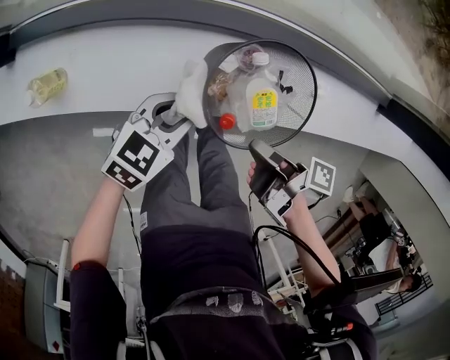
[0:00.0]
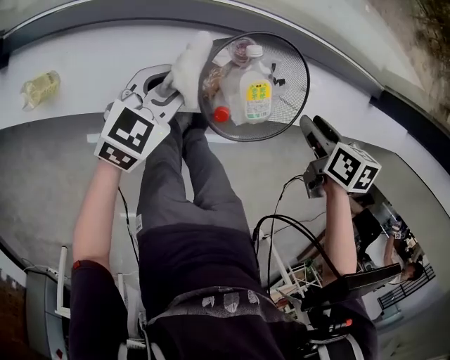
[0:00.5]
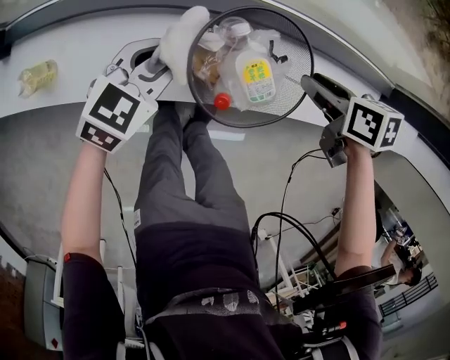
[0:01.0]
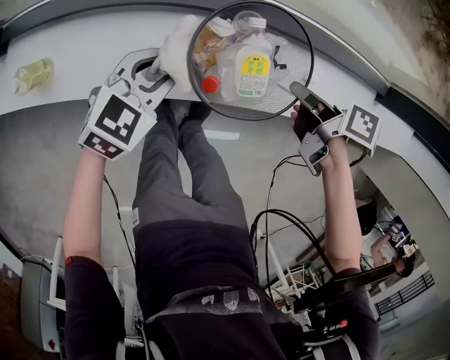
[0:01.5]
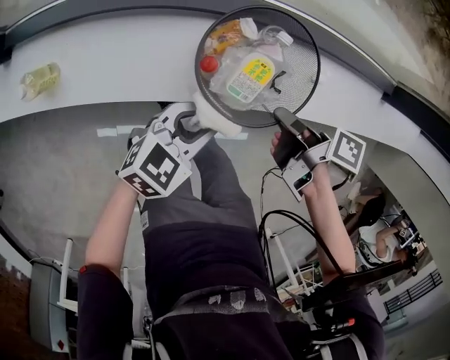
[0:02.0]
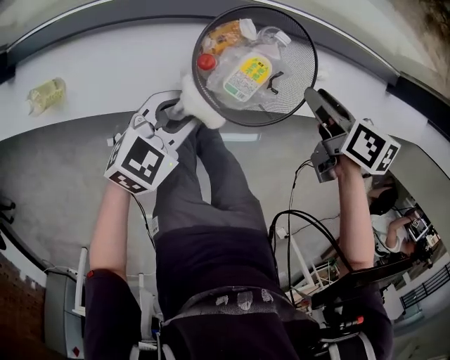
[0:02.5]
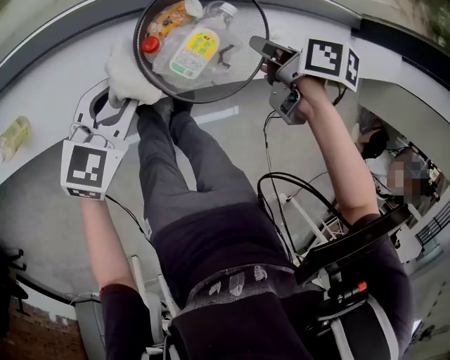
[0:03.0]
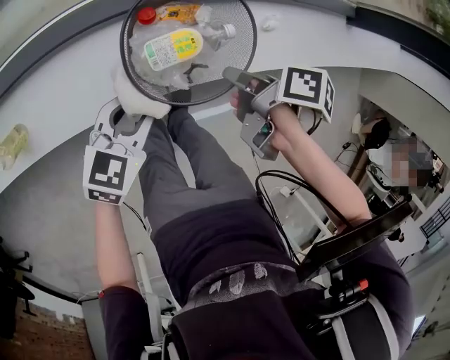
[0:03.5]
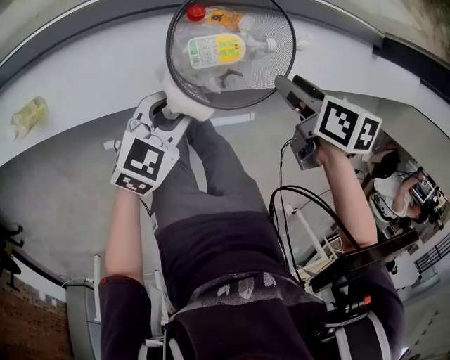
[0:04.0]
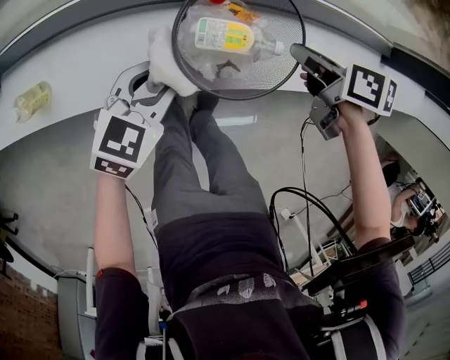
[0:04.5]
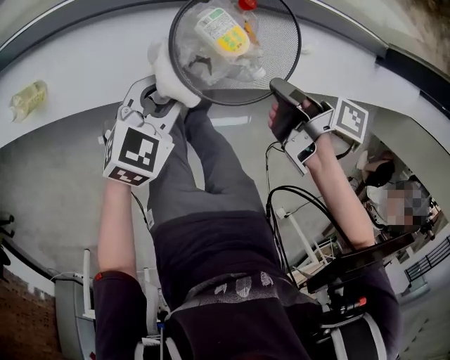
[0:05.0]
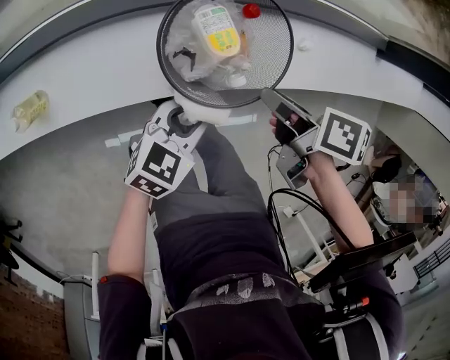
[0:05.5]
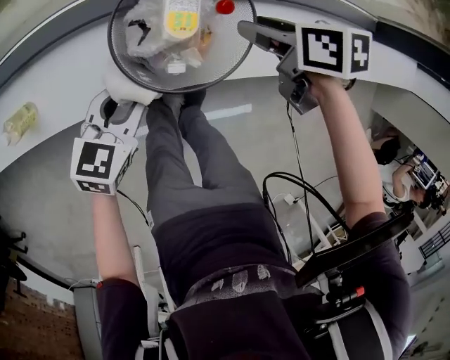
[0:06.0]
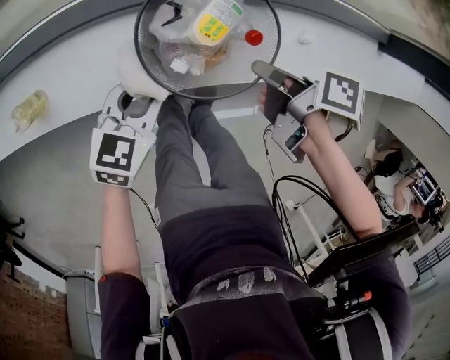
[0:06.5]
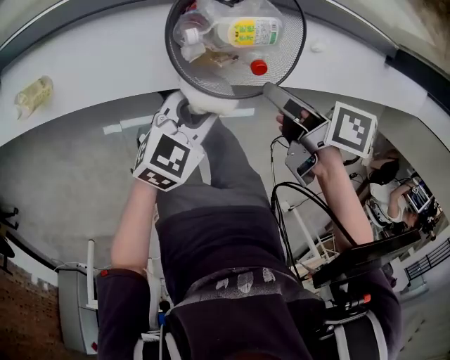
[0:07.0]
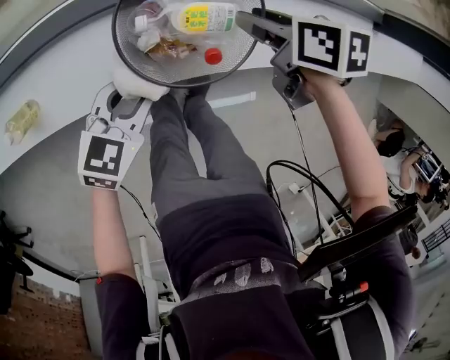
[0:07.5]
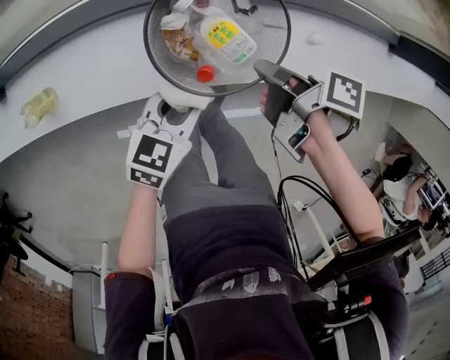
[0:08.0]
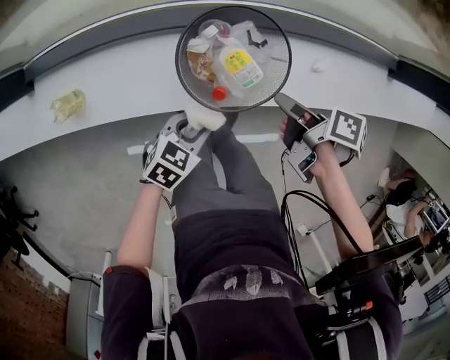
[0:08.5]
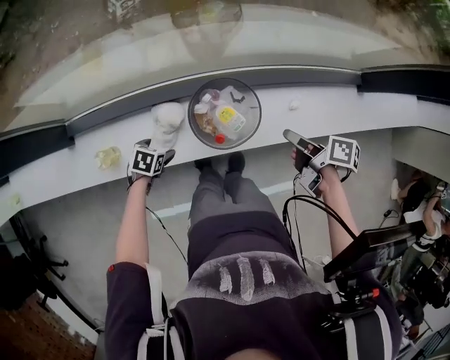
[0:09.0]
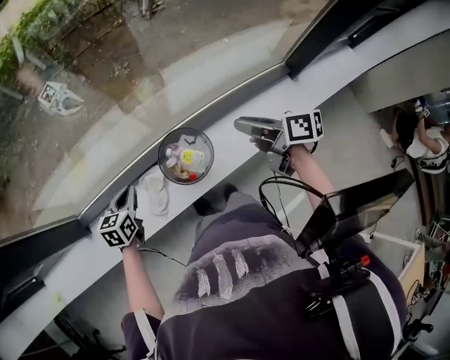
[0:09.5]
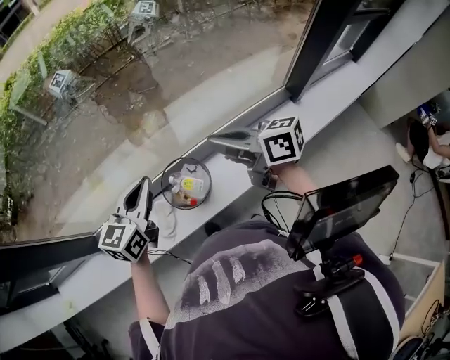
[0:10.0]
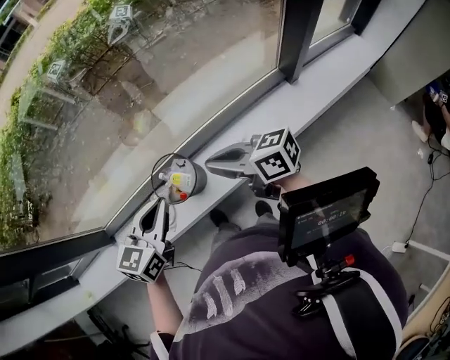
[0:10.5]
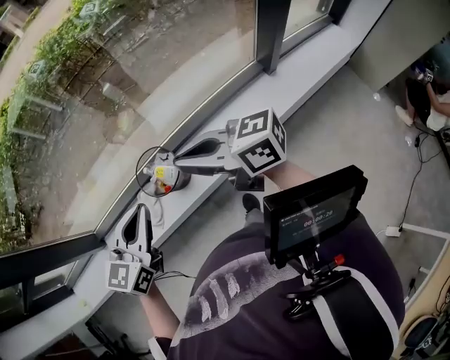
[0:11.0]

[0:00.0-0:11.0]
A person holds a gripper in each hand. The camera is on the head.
0:00.0 to 0:02.0: The two grippers go some 5 cm to the right. The right gripper travels forward and back again, some 15 cm each way, and opens, then closes once more.
0:02.0 to 0:03.5: The right gripper goes forward and returns, roughly 10 cm each way, and opens and closes again.
0:03.5 to 0:05.5: The right gripper goes forward and returns, some 10 cm each way, changes its angle by some 20 degrees, and opens, then closes again. Meanwhile the left gripper moves some 5 cm.
0:05.5 to 0:07.5: The right gripper goes forward and backward, approximately 10 cm each way, reversing 2 times, and rotates about 30 degrees. Meanwhile the left gripper moves left and right over about 10 cm, changing direction 2 times.
0:07.5 to 0:09.0: The left gripper goes some 15 cm to the left and downward, tips its fingers downward by approximately 30 degrees, and opens its fingers. Meanwhile the right gripper goes approximately 15 cm upward, backward and to the right, and changes its angle by roughly 40 degrees.
0:09.0 to 0:11.0: The left gripper heads upward and to the right, covering about 50 cm, angles its fingers upward, by approximately 50 degrees, and closes; the right gripper travels upward by about 30 cm, tilts its fingers approximately 40 degrees upward, and closes up.

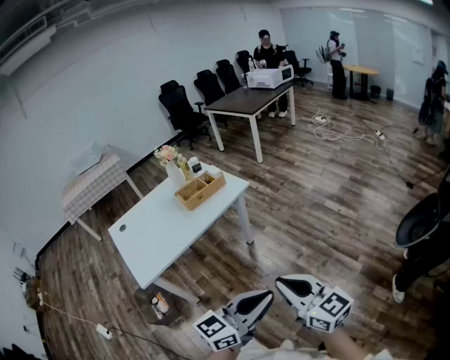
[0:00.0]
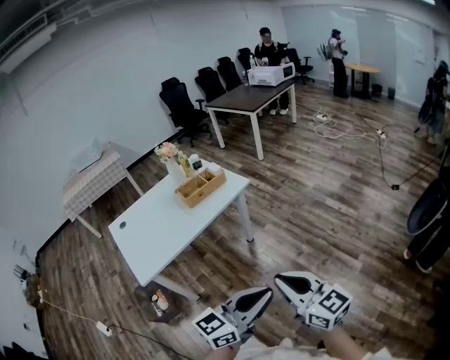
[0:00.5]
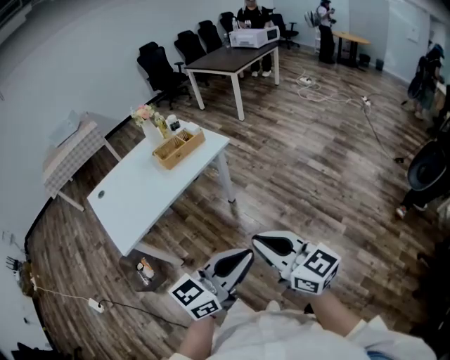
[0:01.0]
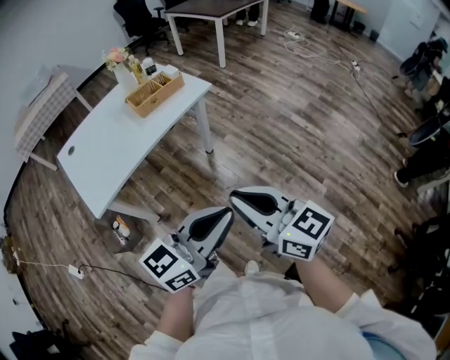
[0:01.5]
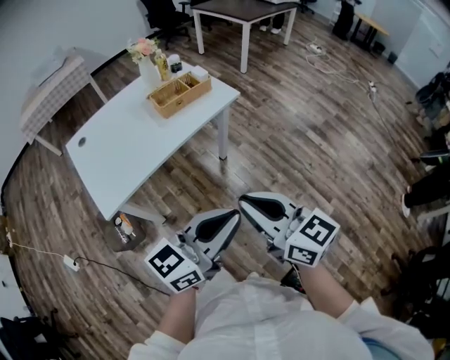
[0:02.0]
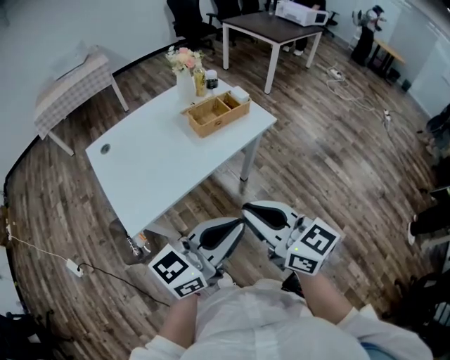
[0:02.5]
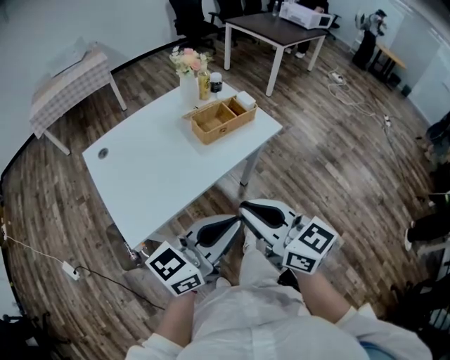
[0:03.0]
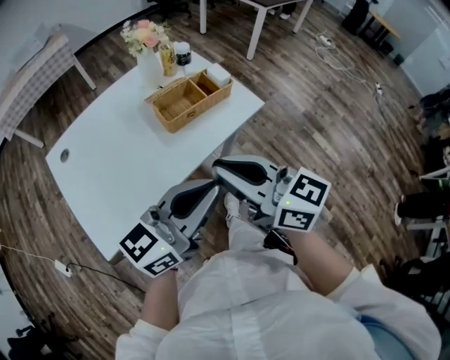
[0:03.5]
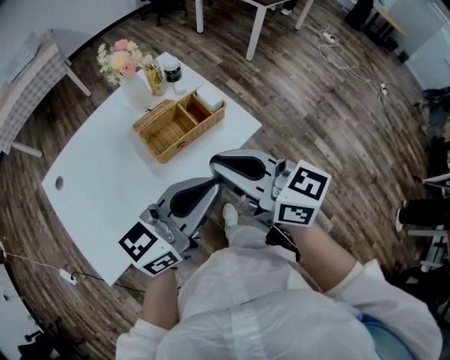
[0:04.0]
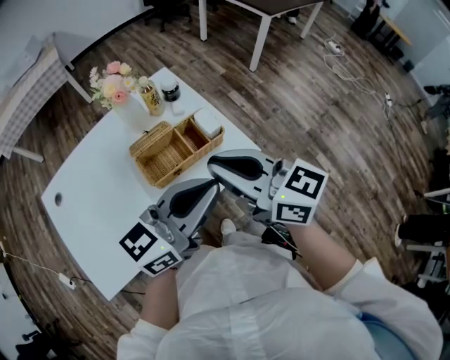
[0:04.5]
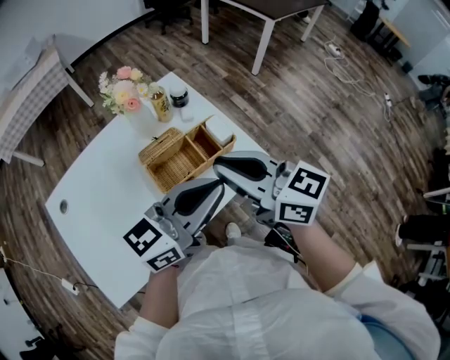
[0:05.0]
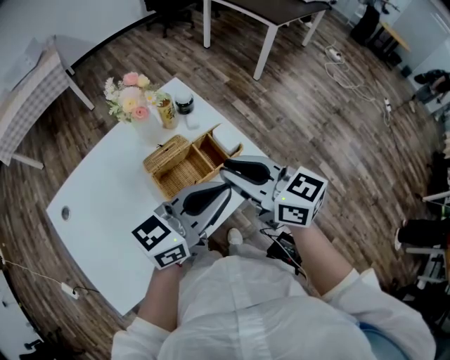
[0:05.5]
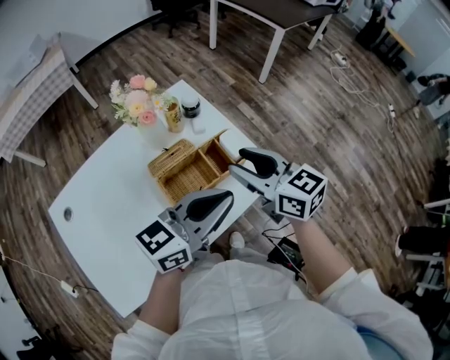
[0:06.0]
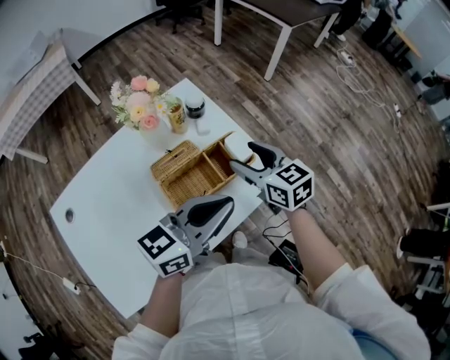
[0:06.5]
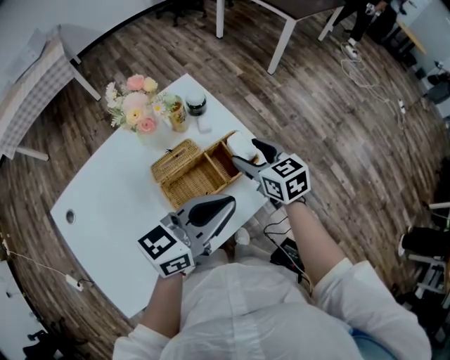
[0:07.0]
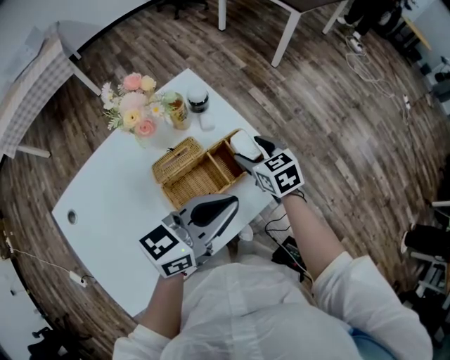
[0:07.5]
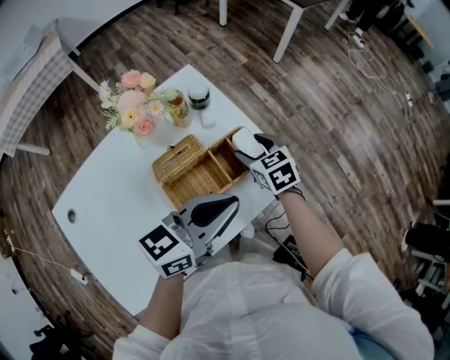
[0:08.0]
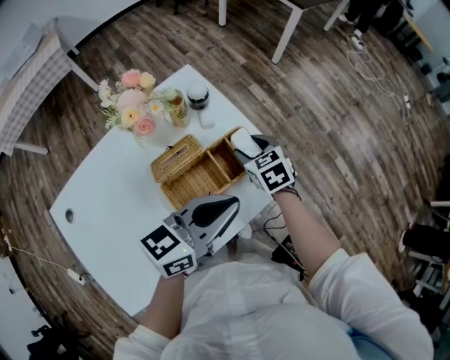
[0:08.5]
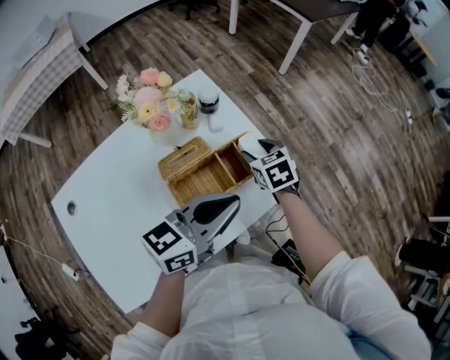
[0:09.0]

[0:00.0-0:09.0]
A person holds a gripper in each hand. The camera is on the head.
0:00.0 to 0:02.0: Both grippers travel together to the left and forward, some 15 cm.
0:02.0 to 0:04.5: Both grippers are carried forward, approximately 50 cm.
0:04.5 to 0:07.0: The left gripper moves forward, downward and to the left, roughly 10 cm, while the right gripper travels downward and forward by about 25 cm, rotates some 30 degrees, and opens its fingers.
0:07.0 to 0:09.0: The right gripper goes some 5 cm downward, and rotates approximately 20 degrees.

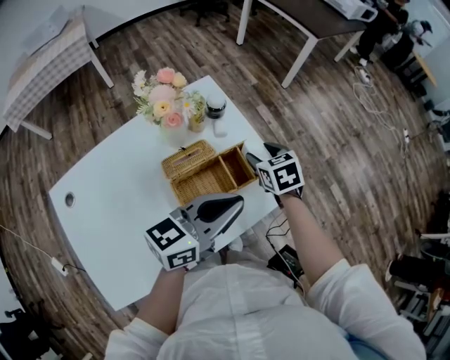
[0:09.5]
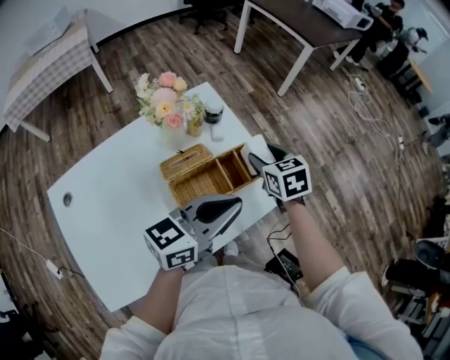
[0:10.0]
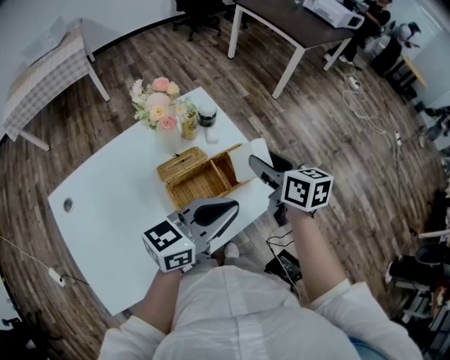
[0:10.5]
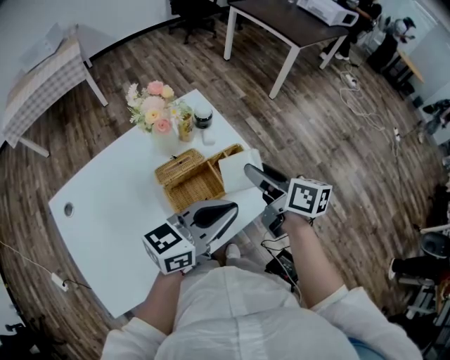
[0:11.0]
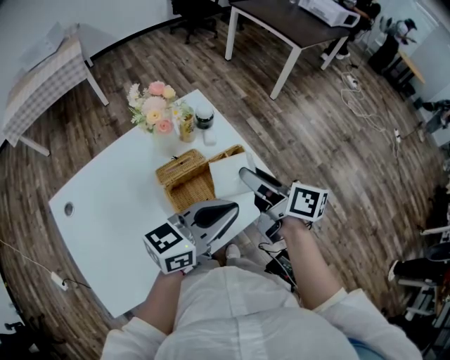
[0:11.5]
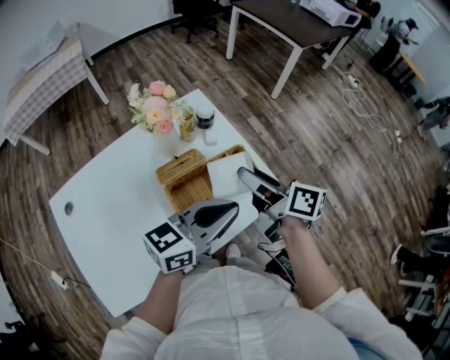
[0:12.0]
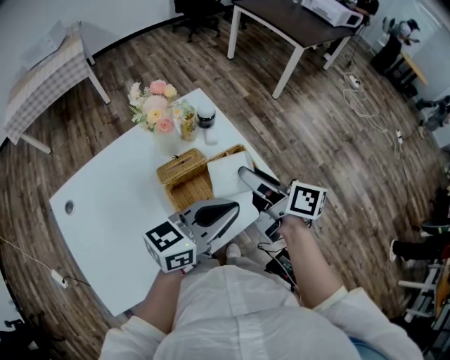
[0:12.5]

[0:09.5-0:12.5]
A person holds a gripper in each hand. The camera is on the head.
0:09.5 to 0:11.0: The right gripper is displaced upward and backward by roughly 15 cm, and tilts its fingers some 30 degrees upward.
0:11.0 to 0:12.5: The grippers stay close to where they were, moving slightly.

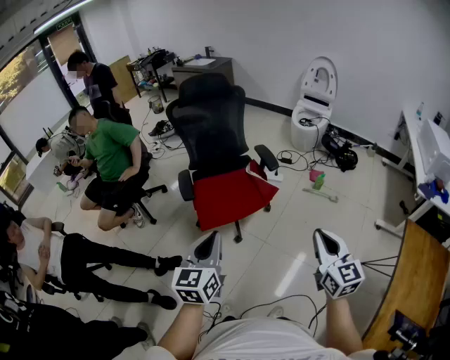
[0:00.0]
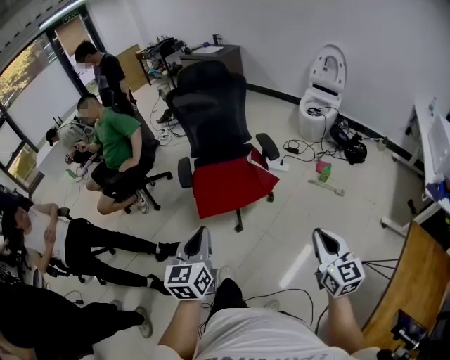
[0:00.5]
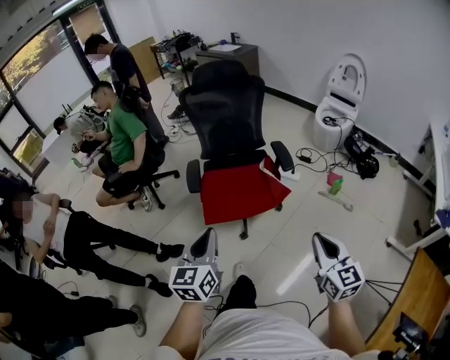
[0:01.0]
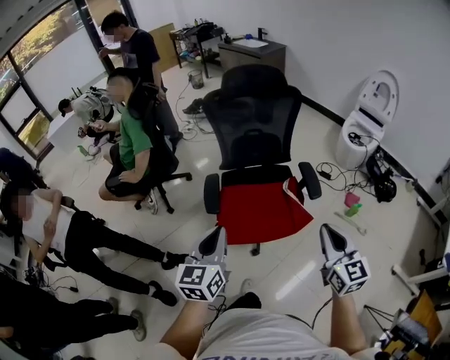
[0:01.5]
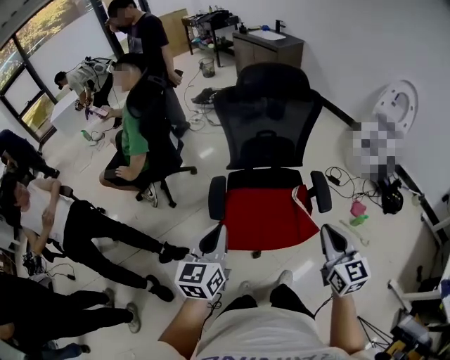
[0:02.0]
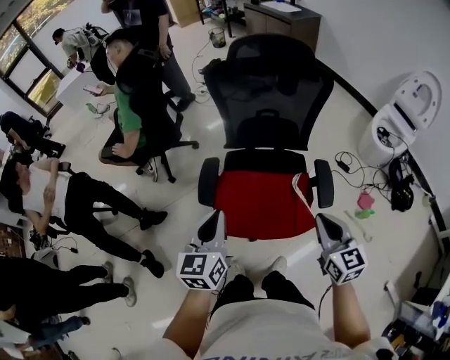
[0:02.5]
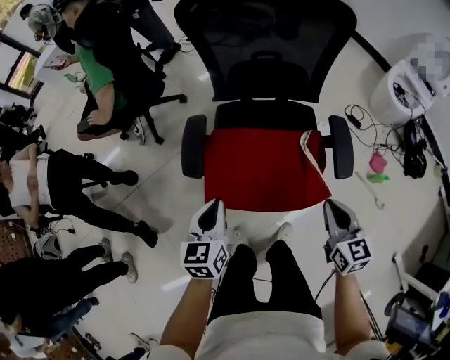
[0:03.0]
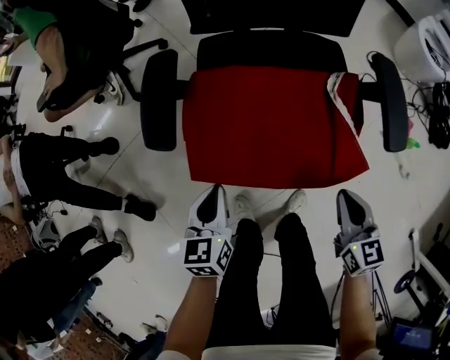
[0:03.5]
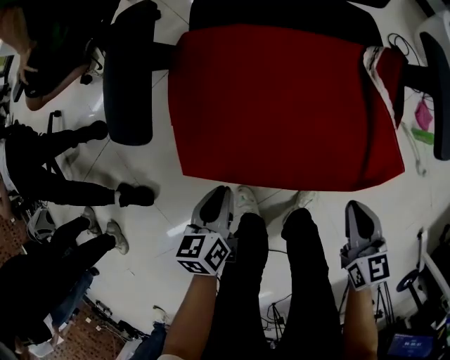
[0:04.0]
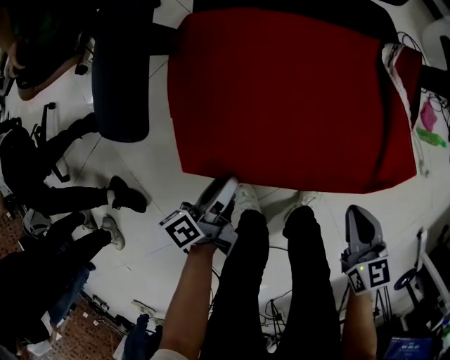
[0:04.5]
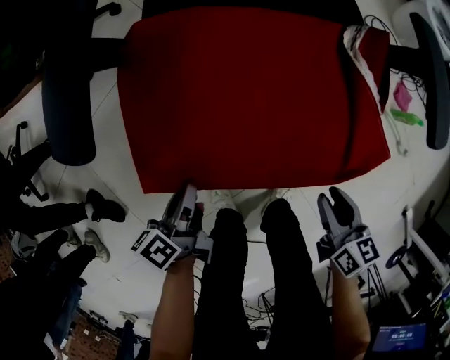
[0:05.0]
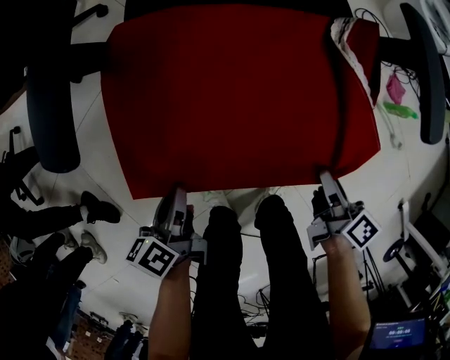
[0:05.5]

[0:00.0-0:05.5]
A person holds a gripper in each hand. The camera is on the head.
0:00.0 to 0:02.0: Both grippers travel together forward, approximately 30 cm.
0:02.0 to 0:03.5: Both grippers travel together downward, roughly 40 cm. The left gripper changes its angle by approximately 30 degrees. Meanwhile the right gripper changes its angle by some 20 degrees.
0:03.5 to 0:05.5: Both grippers travel together downward, approximately 15 cm. The right gripper rotates around the line of its fingers by approximately 50 degrees, clockwise from behind, and opens up, while the left gripper twists roughly 40 degrees counterclockwise, seen from behind, and opens, then closes once more.
